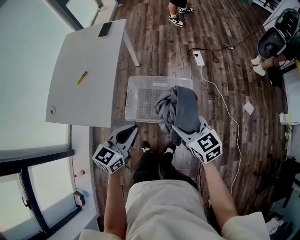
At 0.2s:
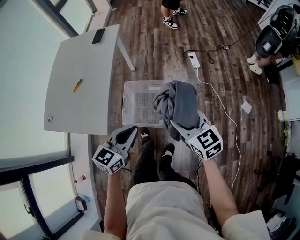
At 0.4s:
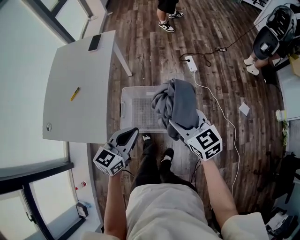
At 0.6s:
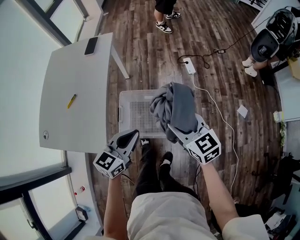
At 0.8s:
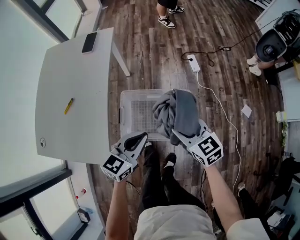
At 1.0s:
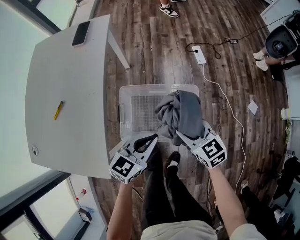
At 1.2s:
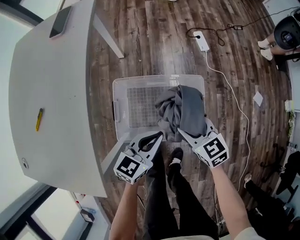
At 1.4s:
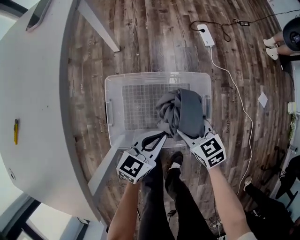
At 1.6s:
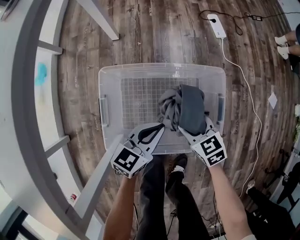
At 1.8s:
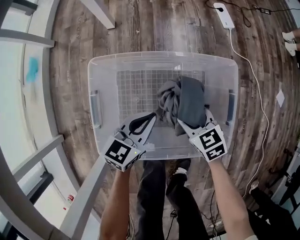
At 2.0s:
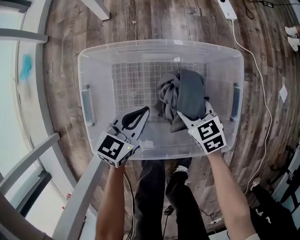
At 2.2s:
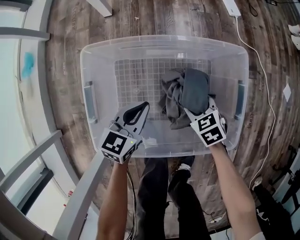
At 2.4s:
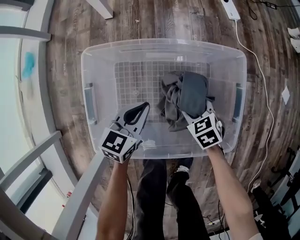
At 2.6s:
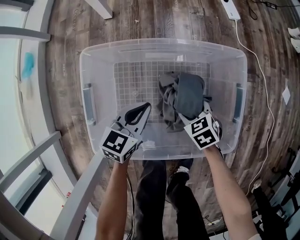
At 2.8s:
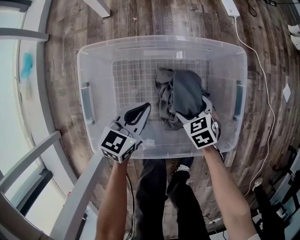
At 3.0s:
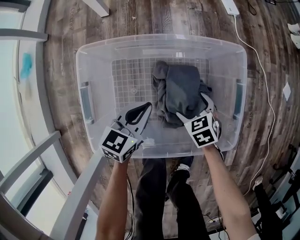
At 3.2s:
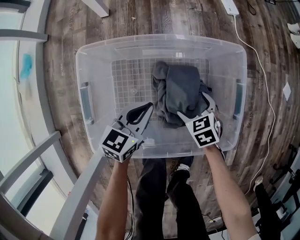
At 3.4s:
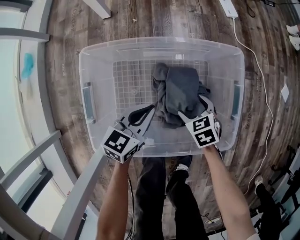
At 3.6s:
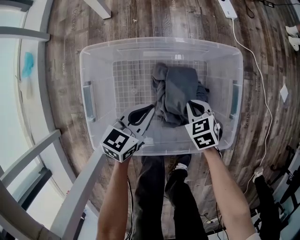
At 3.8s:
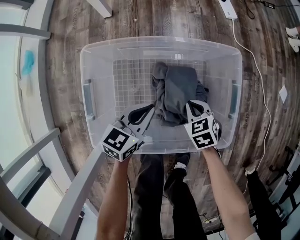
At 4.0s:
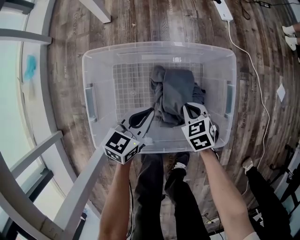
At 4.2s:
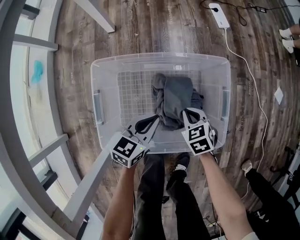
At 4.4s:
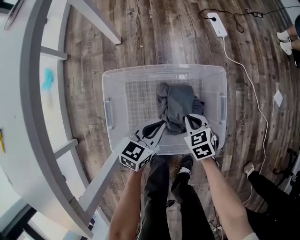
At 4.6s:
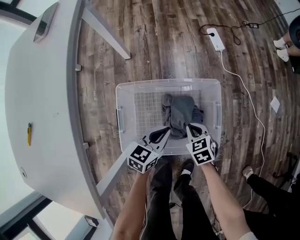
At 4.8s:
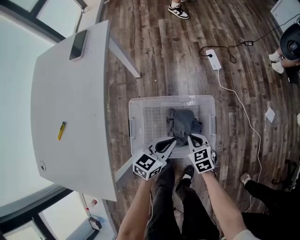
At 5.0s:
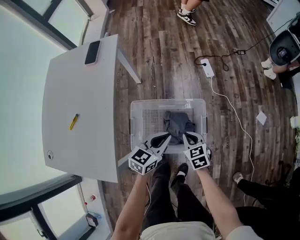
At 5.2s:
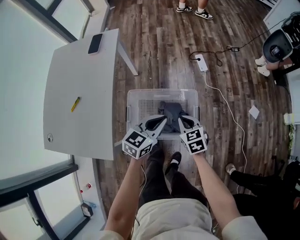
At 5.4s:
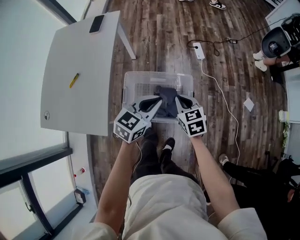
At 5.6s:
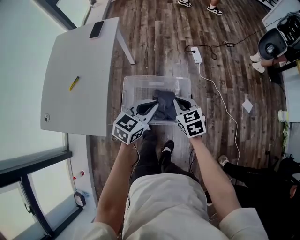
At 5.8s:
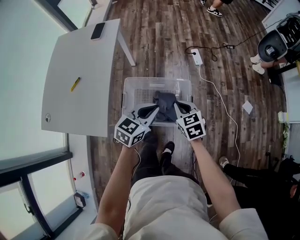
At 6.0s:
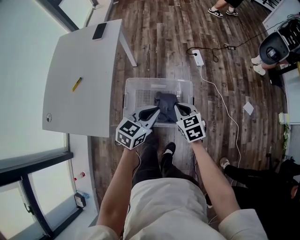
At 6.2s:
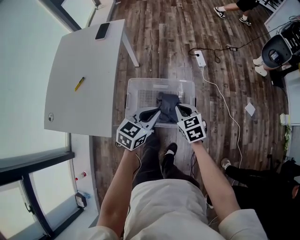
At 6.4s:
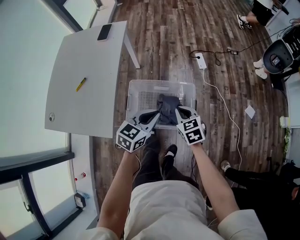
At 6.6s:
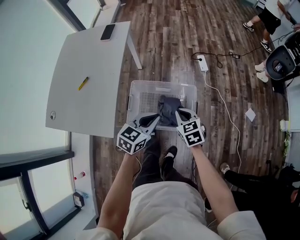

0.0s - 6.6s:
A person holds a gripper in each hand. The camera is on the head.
0.0s - 1.6s: The left gripper moves downward and forward, about 50 cm. The right gripper goes approximately 50 cm downward, and changes its angle by about 20 degrees.
1.6s - 3.2s: Both grippers travel together downward, about 15 cm. The right gripper opens.
3.2s - 5.0s: Both grippers move upward, roughly 50 cm. The right gripper closes its fingers.
5.0s - 6.6s: The right gripper travels upward and backward by some 15 cm. Meanwhile the left gripper goes some 15 cm backward and upward.

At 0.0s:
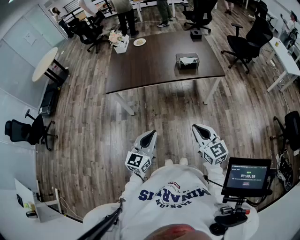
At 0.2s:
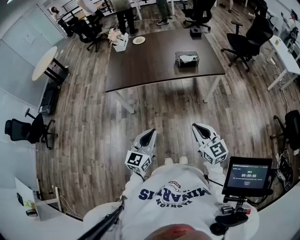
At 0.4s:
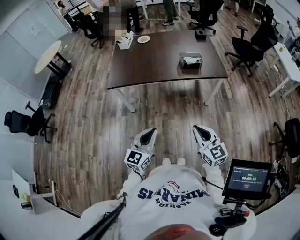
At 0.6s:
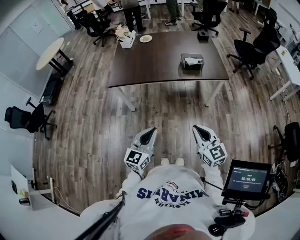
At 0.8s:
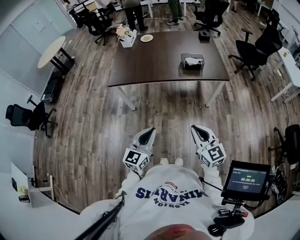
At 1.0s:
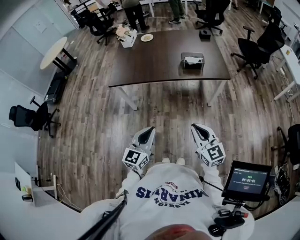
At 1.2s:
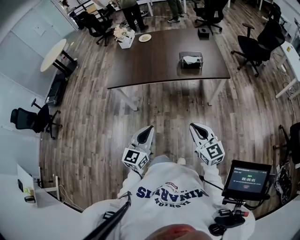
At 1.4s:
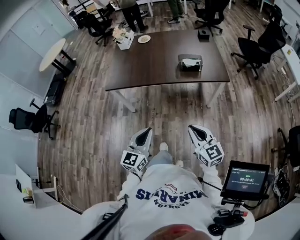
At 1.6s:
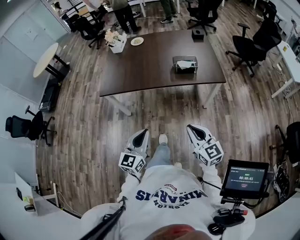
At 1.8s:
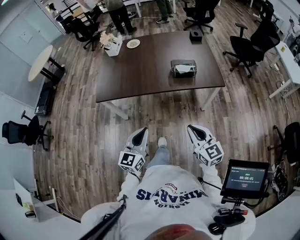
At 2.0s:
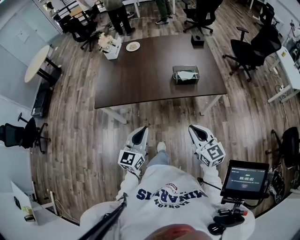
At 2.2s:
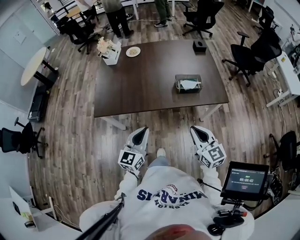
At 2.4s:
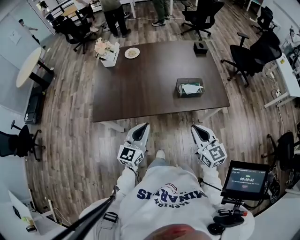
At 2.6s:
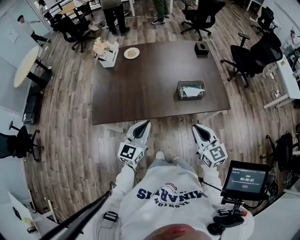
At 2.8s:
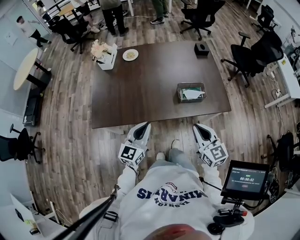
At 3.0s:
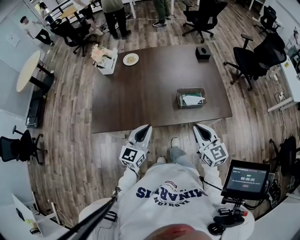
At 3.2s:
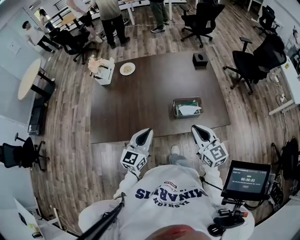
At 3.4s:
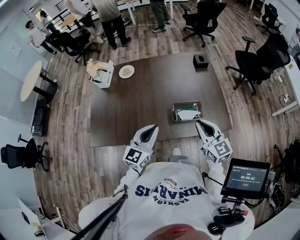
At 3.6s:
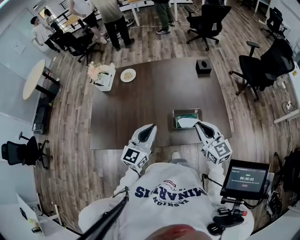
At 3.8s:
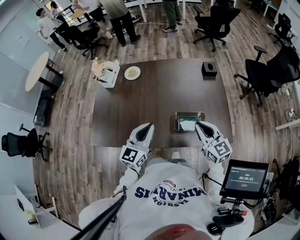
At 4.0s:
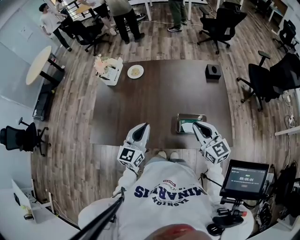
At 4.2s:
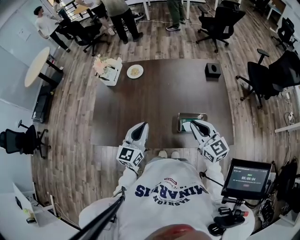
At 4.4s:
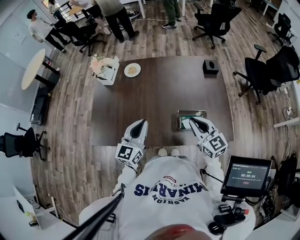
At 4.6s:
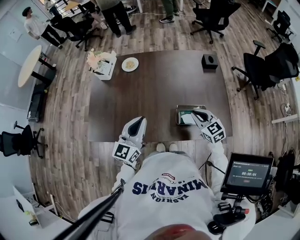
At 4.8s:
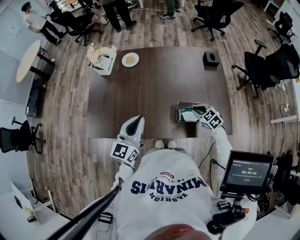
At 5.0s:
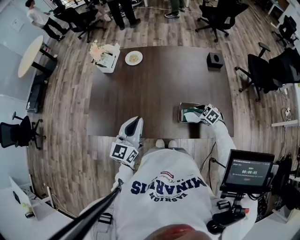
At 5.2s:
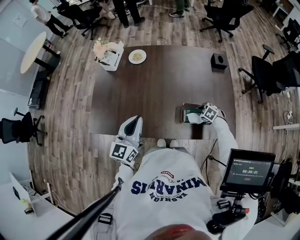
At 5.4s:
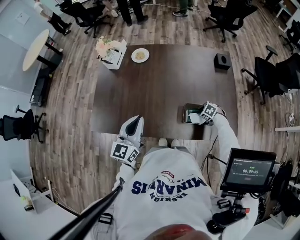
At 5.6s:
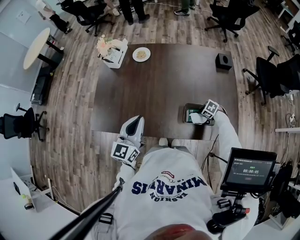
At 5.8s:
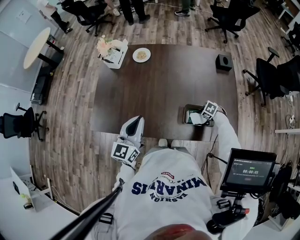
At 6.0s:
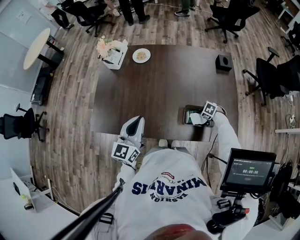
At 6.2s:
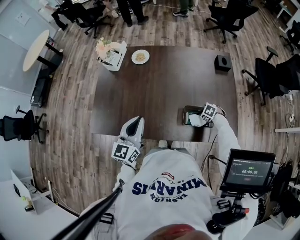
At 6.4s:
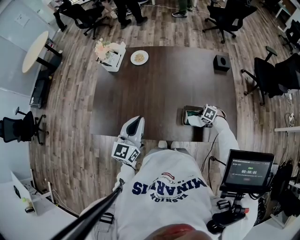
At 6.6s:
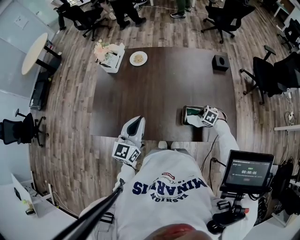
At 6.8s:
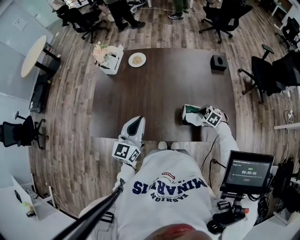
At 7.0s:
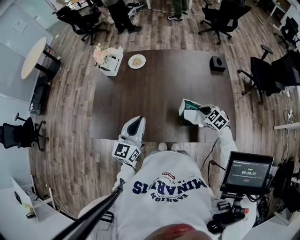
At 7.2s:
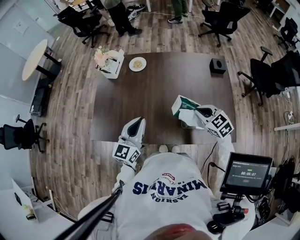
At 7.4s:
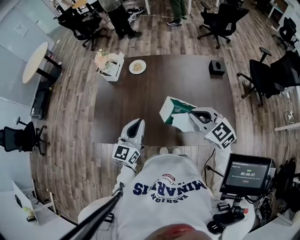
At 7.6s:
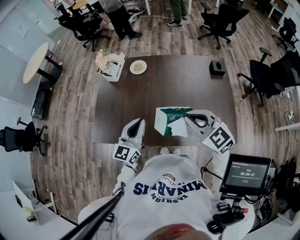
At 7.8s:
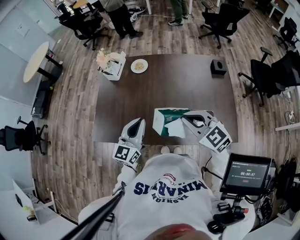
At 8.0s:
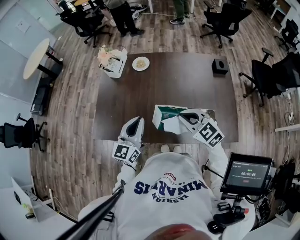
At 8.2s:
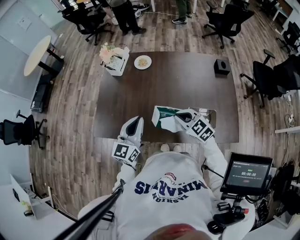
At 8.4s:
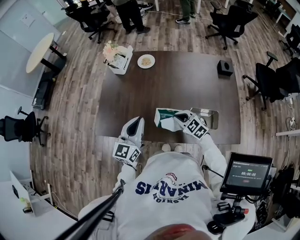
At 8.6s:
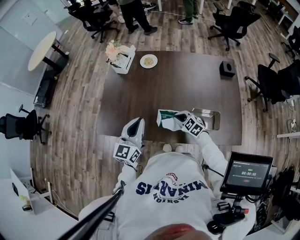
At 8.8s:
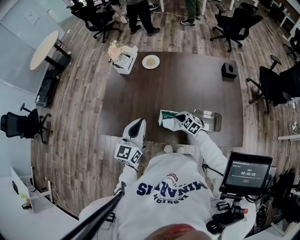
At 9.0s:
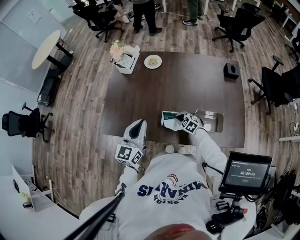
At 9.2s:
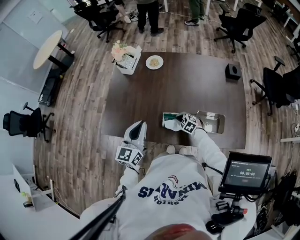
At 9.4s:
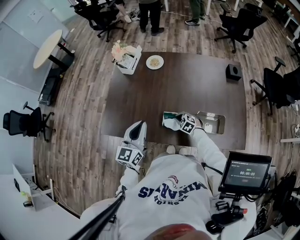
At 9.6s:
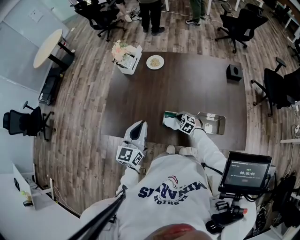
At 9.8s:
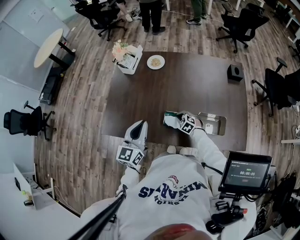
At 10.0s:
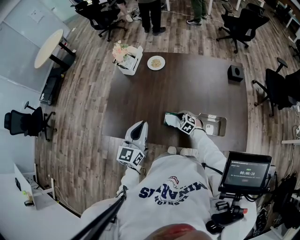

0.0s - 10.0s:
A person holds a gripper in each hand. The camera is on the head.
0.0s - 1.4s: The right gripper goes approximately 5 cm forward and to the right. Meanwhile the left gripper is displaced to the right by some 5 cm.
1.4s - 2.8s: The grippers both shift forward by roughly 40 cm.
2.8s - 4.2s: The grippers both shift forward by roughly 20 cm.
4.2s - 5.8s: The left gripper shifts by approximately 5 cm; the right gripper heads downward, covering about 35 cm, tilts its fingers roughly 60 degrees downward, and opens and closes again.
5.8s - 7.2s: The right gripper heads upward, covering roughly 30 cm, and angles its fingers upward, by roughly 40 degrees.
7.2s - 8.6s: The left gripper shifts some 5 cm to the left; the right gripper travels to the left and downward by roughly 20 cm.
8.6s - 10.0s: The right gripper shifts approximately 10 cm downward and forward.

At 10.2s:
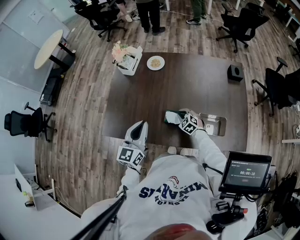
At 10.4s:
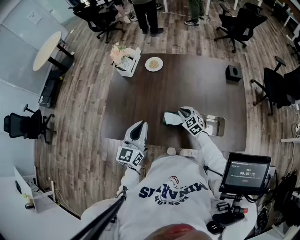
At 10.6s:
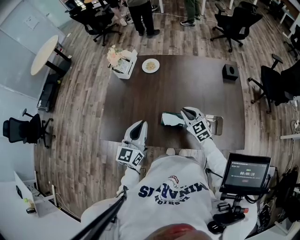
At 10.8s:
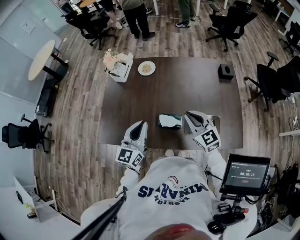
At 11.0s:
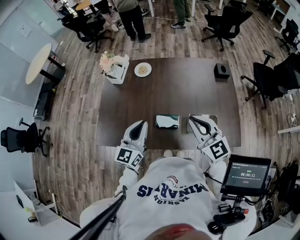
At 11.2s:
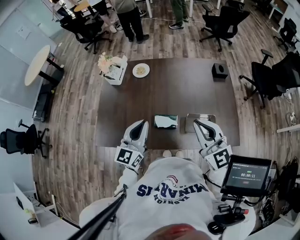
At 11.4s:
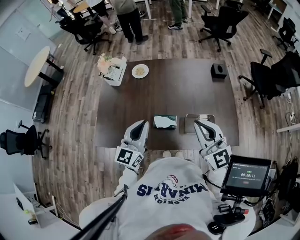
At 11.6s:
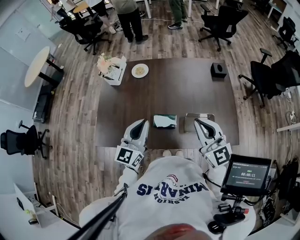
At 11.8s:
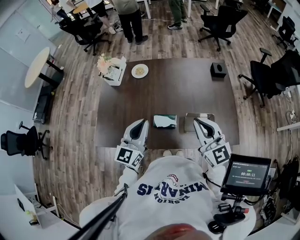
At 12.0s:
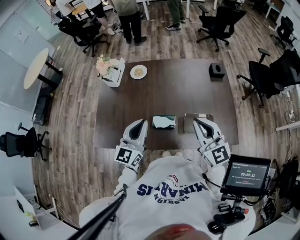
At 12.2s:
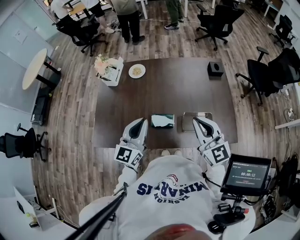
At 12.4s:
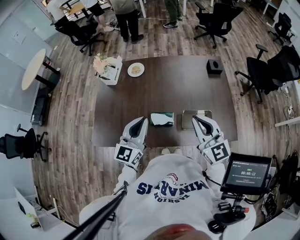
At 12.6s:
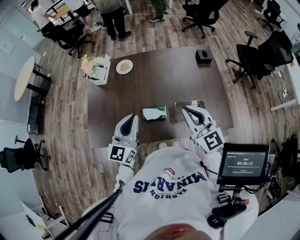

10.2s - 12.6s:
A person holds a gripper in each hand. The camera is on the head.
10.2s - 11.4s: The left gripper goes approximately 5 cm to the right. The right gripper goes approximately 40 cm upward, and angles its fingers upward, by approximately 50 degrees.
11.4s - 12.6s: The grippers make only small movements.

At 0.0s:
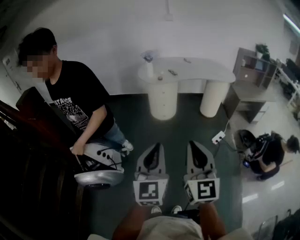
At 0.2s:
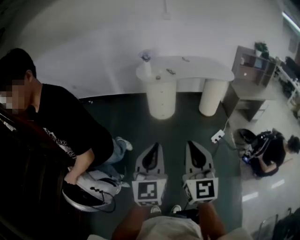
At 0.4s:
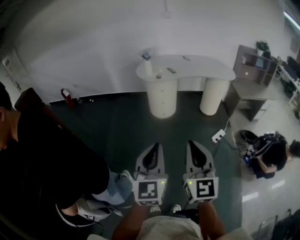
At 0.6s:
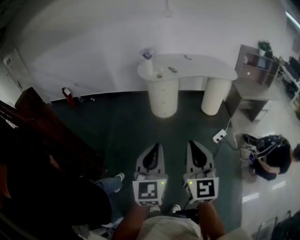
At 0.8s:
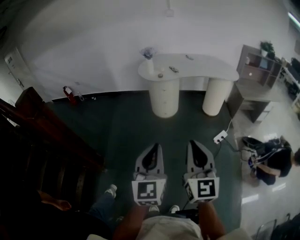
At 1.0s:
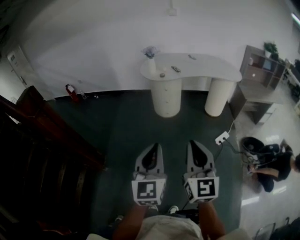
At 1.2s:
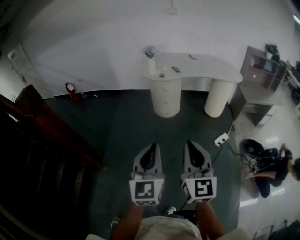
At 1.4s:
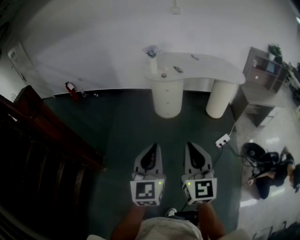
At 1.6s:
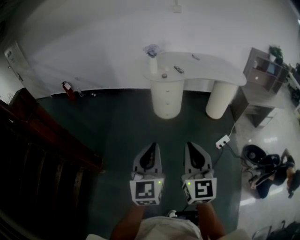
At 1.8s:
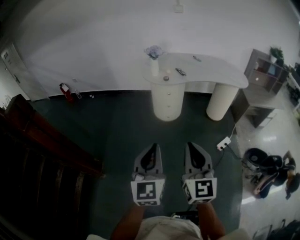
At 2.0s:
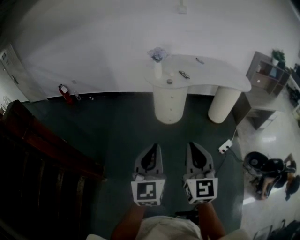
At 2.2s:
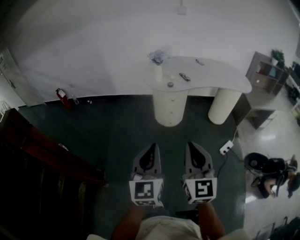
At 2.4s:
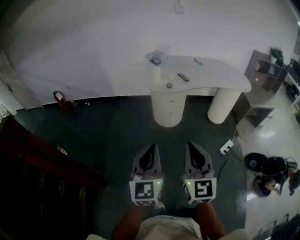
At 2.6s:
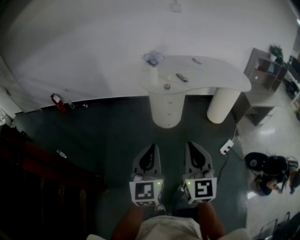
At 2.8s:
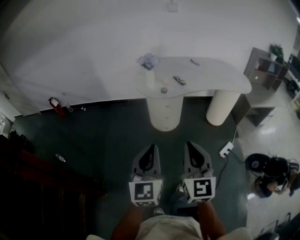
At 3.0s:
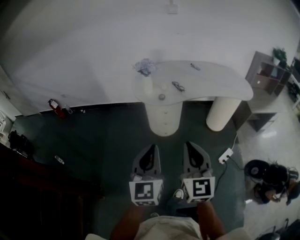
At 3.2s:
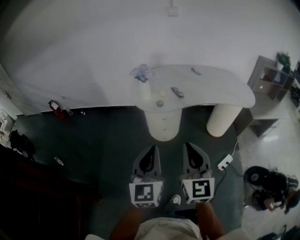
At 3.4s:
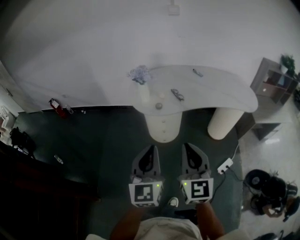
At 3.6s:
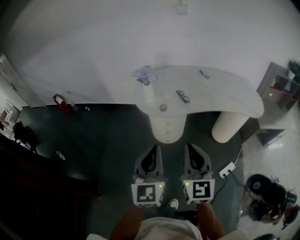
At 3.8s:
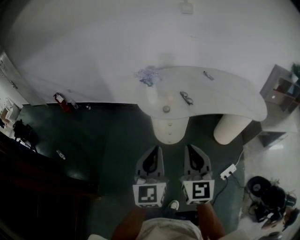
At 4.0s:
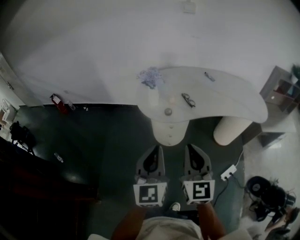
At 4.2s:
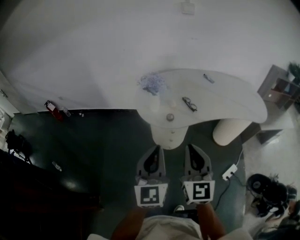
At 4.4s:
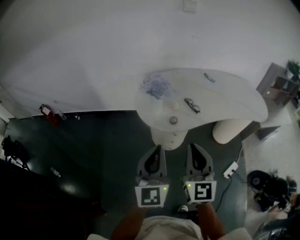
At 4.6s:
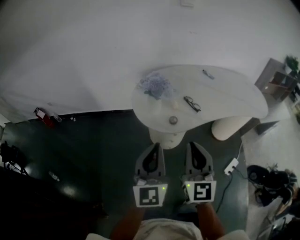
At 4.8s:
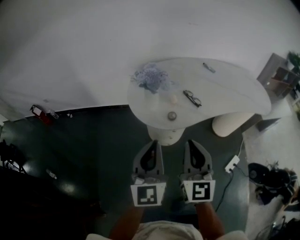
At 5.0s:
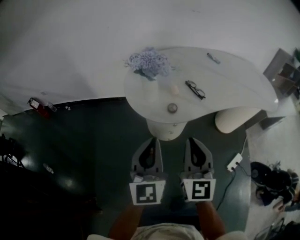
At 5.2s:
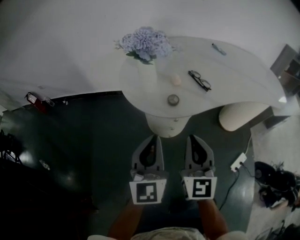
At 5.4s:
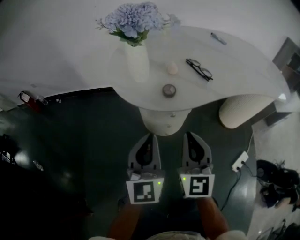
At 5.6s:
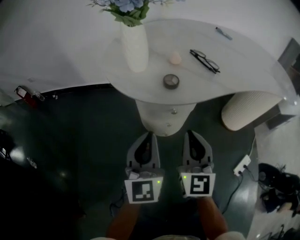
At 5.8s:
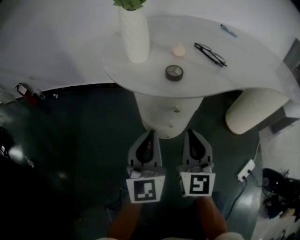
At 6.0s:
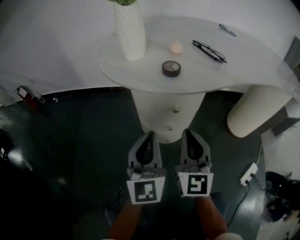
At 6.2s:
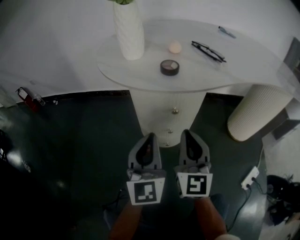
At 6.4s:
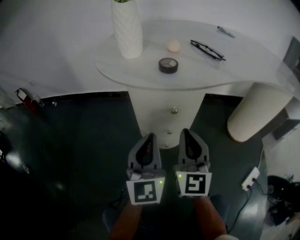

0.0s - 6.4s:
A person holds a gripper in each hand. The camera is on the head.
0.0s - 1.6s: The two grippers go approximately 10 cm forward.
1.6s - 3.2s: Both grippers move forward, approximately 35 cm.
3.2s - 4.8s: The grippers both shift forward by approximately 25 cm.
4.8s - 6.4s: Both grippers travel together downward, some 40 cm.
